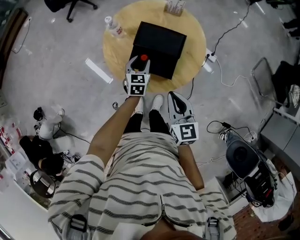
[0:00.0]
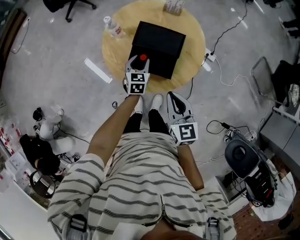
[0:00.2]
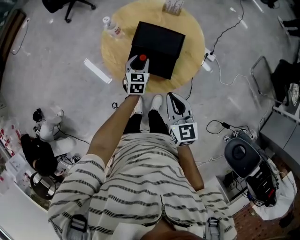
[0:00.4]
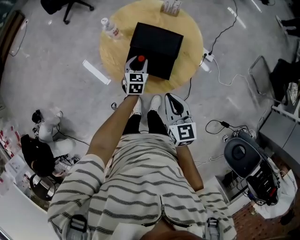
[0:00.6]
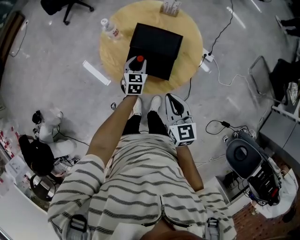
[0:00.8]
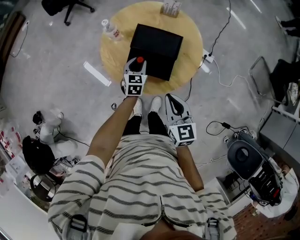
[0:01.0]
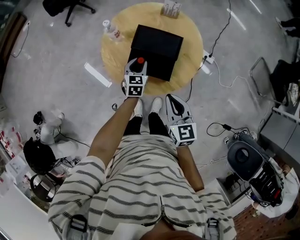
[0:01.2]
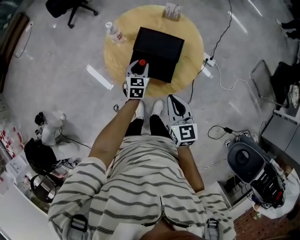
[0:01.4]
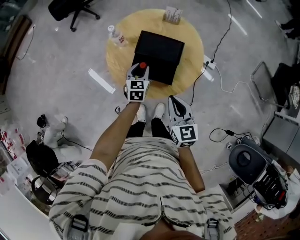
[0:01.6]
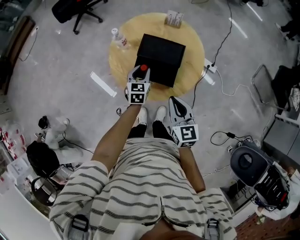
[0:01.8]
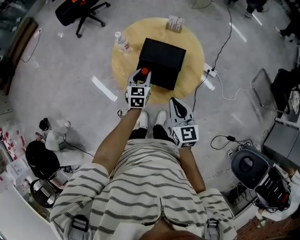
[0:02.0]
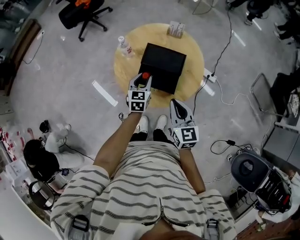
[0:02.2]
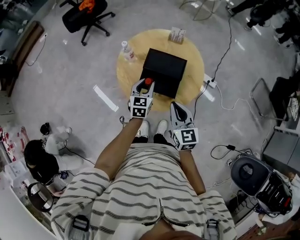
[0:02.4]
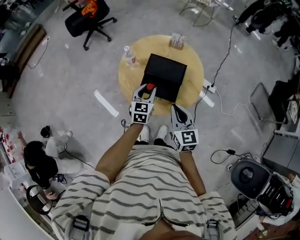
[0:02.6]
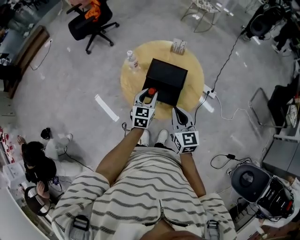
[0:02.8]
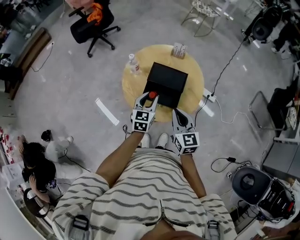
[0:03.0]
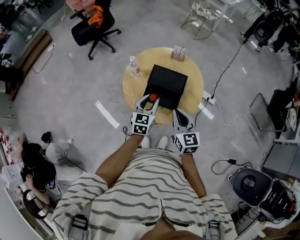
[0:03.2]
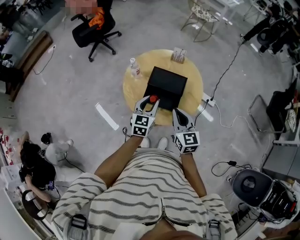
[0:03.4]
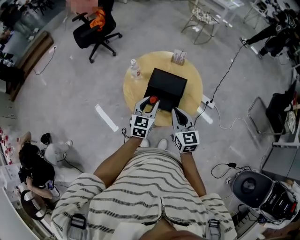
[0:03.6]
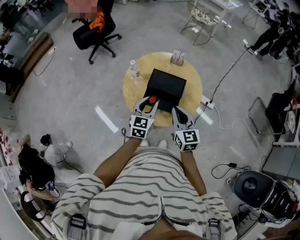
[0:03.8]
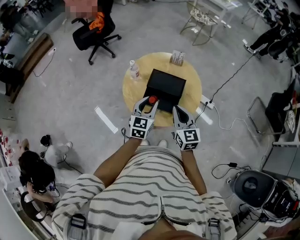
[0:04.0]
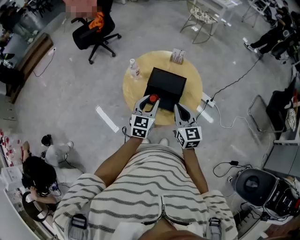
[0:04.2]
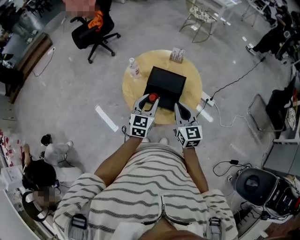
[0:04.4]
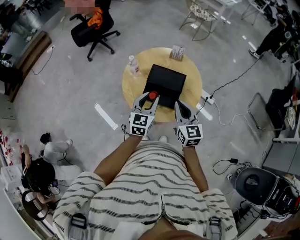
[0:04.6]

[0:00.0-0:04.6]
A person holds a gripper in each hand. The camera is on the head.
0:00.0 to 0:01.6: The grippers move only a little.
0:01.6 to 0:03.0: The left gripper shifts about 15 cm upward and backward. Meanwhile the right gripper moves about 5 cm.
0:03.0 to 0:04.6: The left gripper travels upward by about 5 cm.

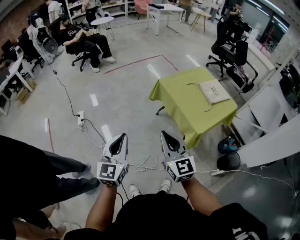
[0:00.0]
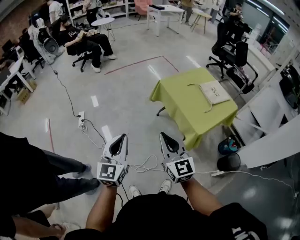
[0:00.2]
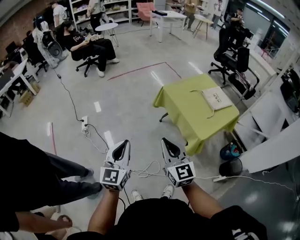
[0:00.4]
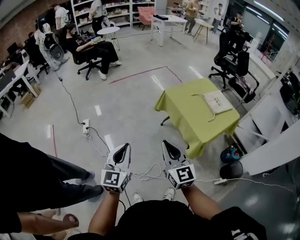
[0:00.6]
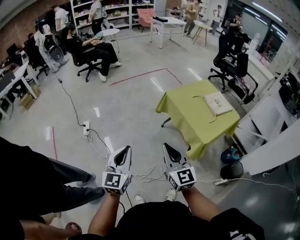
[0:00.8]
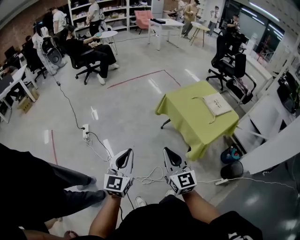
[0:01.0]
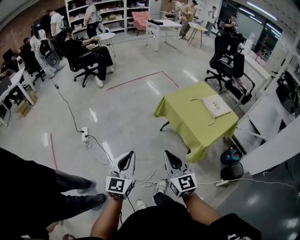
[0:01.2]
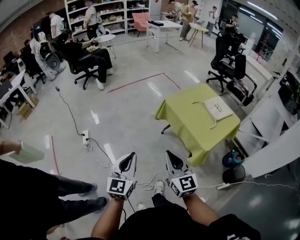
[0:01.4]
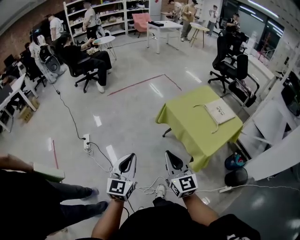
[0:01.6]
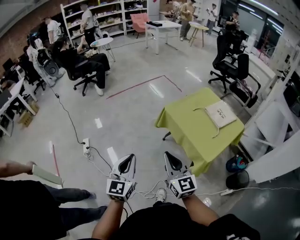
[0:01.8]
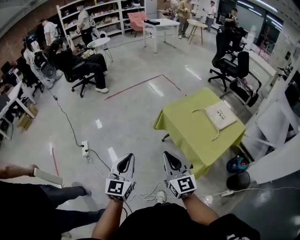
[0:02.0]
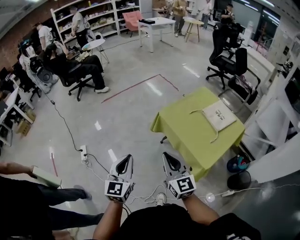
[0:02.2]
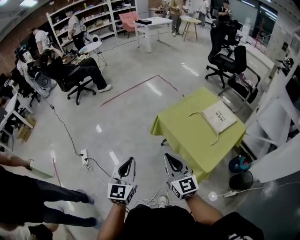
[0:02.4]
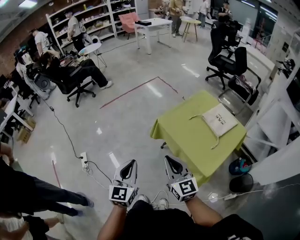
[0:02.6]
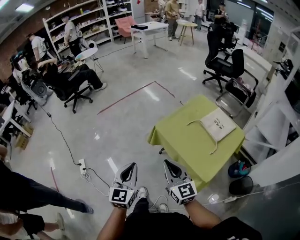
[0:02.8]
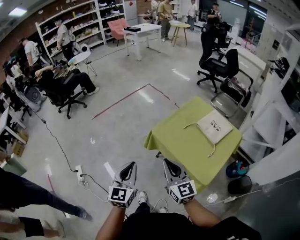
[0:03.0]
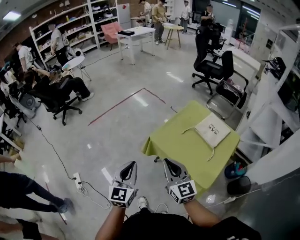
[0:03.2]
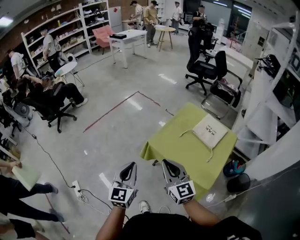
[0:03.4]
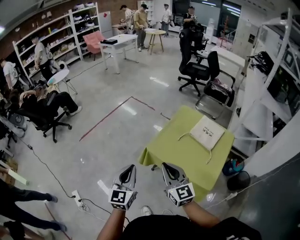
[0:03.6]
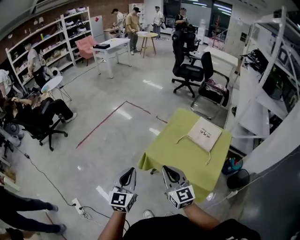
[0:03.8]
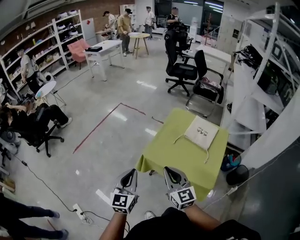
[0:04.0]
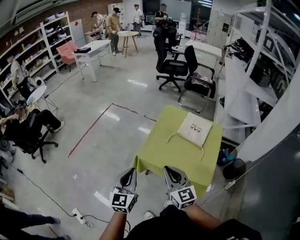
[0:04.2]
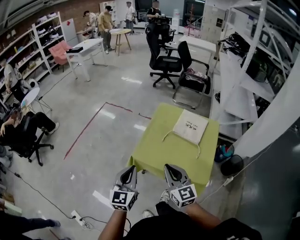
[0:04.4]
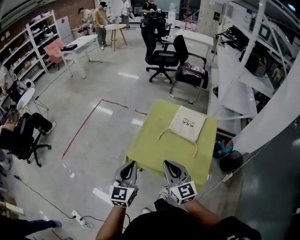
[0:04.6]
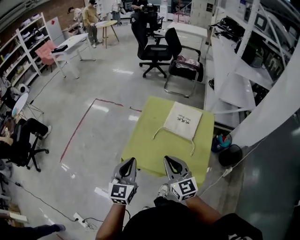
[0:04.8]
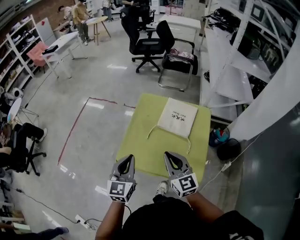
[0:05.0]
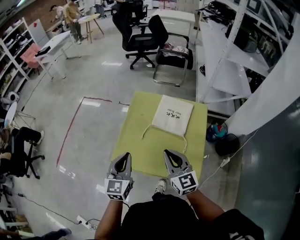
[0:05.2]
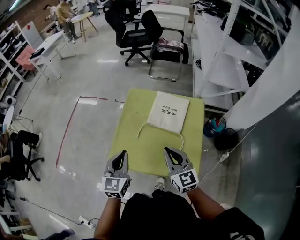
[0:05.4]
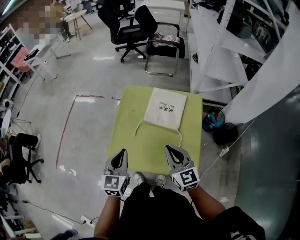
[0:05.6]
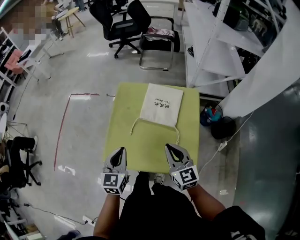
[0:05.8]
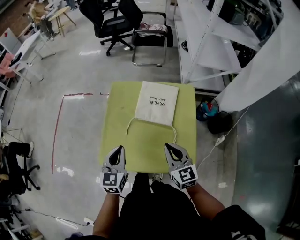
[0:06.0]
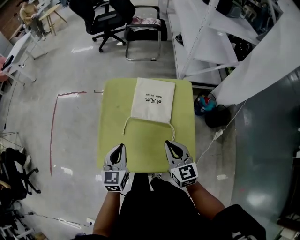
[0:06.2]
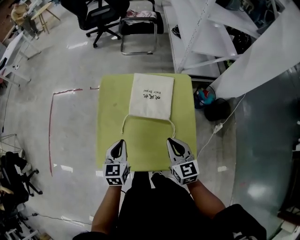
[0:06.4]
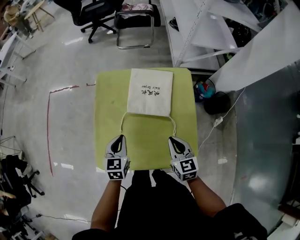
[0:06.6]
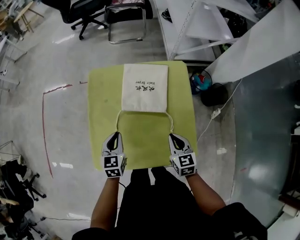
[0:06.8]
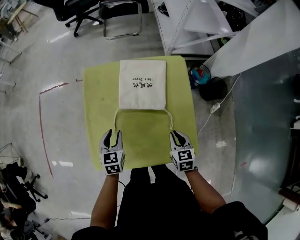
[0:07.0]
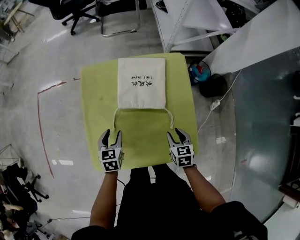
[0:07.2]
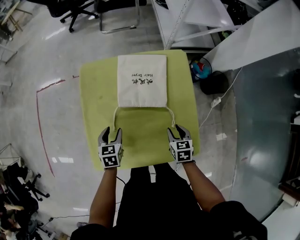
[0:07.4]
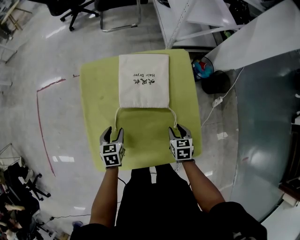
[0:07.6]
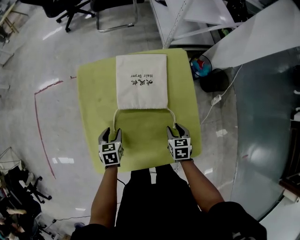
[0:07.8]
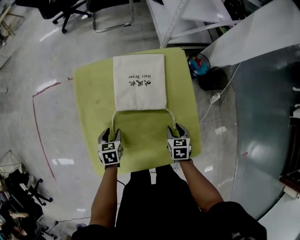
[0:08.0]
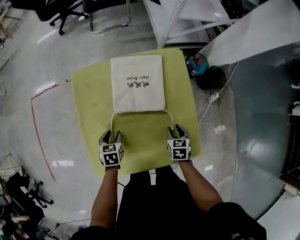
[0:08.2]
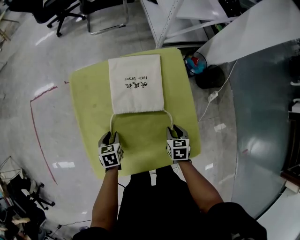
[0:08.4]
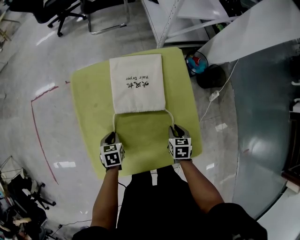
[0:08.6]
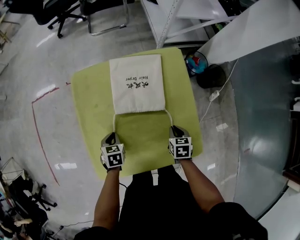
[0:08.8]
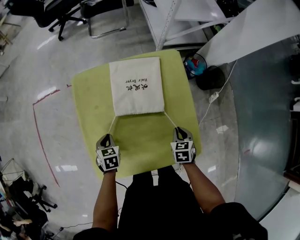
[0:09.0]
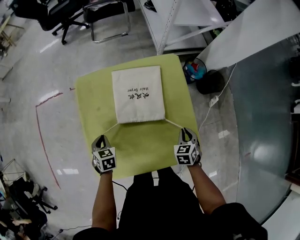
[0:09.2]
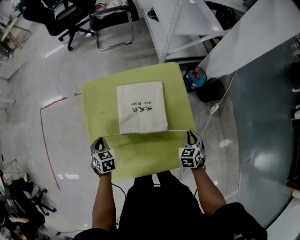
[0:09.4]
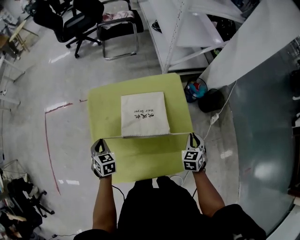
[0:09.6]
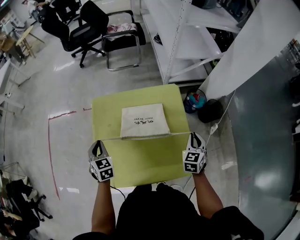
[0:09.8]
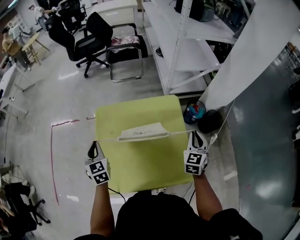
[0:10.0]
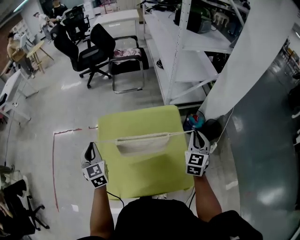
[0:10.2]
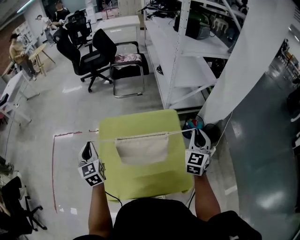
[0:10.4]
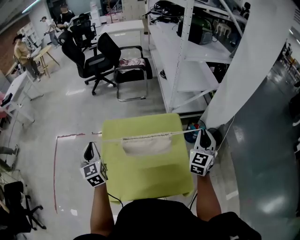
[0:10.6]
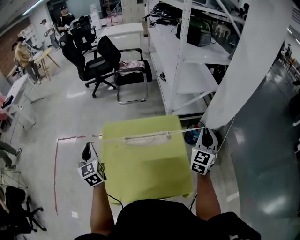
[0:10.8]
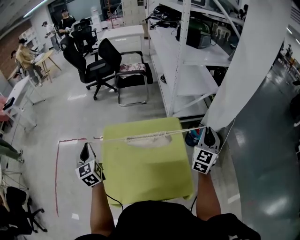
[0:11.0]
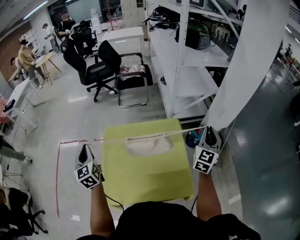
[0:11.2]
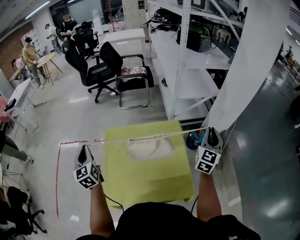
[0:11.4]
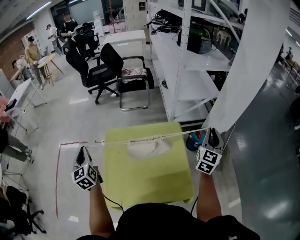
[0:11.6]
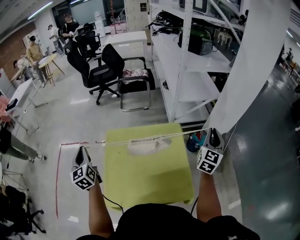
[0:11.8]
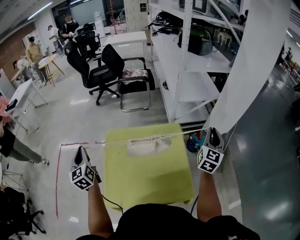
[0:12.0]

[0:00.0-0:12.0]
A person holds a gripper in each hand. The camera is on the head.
0:00.0 to 0:01.6: The two grippers go approximately 5 cm forward.
0:01.6 to 0:03.0: Both grippers move forward, roughly 25 cm.
0:03.0 to 0:04.4: The left gripper shifts by about 15 cm, and turns by some 30 degrees; the right gripper moves about 10 cm, and turns by some 30 degrees.
0:04.4 to 0:06.0: The right gripper goes roughly 25 cm to the right, forward and downward, and rotates some 20 degrees. Meanwhile the left gripper moves forward, to the right and downward, about 30 cm, and changes its angle by some 20 degrees.
0:06.0 to 0:07.6: The right gripper is displaced downward by roughly 25 cm, angles its fingers downward, by roughly 40 degrees, and opens up, while the left gripper heads downward and forward, covering approximately 25 cm, changes its angle by about 30 degrees, and opens its fingers.
0:07.6 to 0:09.0: The left gripper closes up; the right gripper closes up.
0:09.0 to 0:10.4: Both grippers move upward, roughly 30 cm. The left gripper points its fingers approximately 40 degrees further upward. The right gripper tips its fingers upward by about 50 degrees.
0:10.4 to 0:12.0: The right gripper heads upward and to the right, covering about 10 cm, and changes its angle by roughly 20 degrees; the left gripper goes about 10 cm to the left and upward.

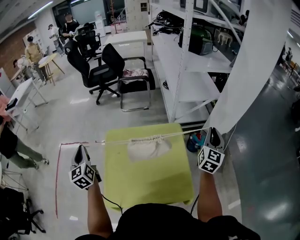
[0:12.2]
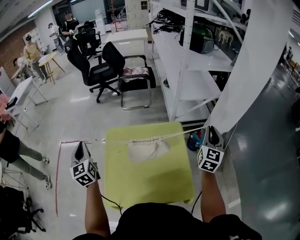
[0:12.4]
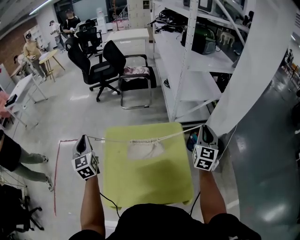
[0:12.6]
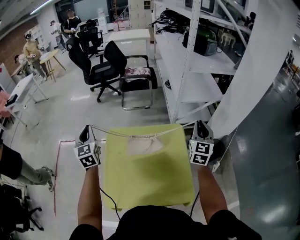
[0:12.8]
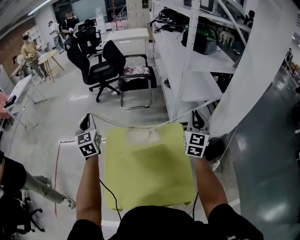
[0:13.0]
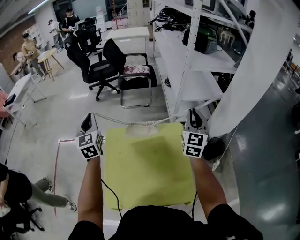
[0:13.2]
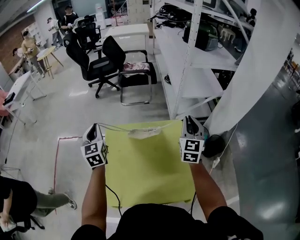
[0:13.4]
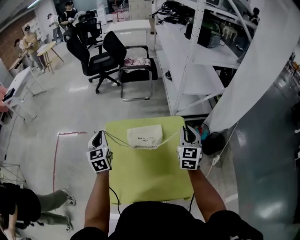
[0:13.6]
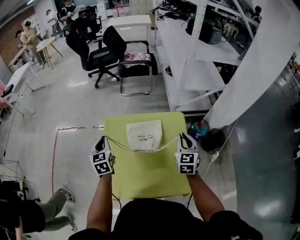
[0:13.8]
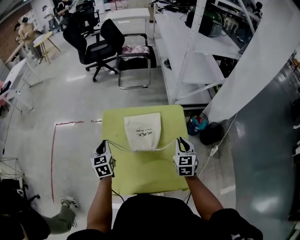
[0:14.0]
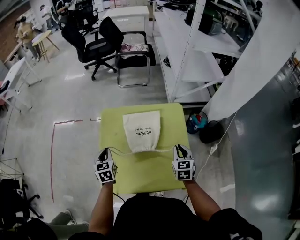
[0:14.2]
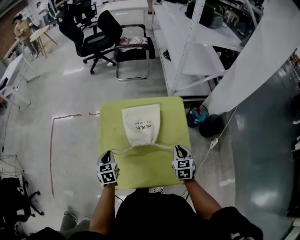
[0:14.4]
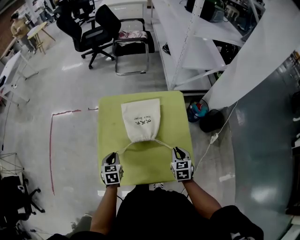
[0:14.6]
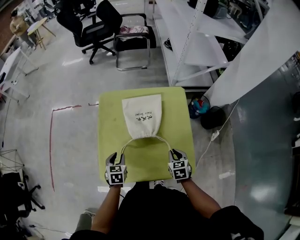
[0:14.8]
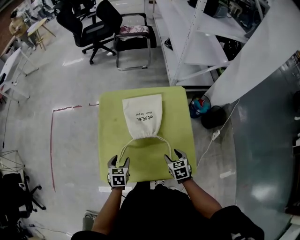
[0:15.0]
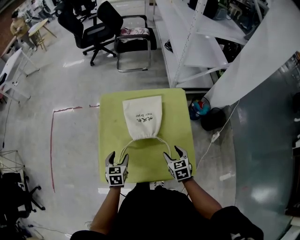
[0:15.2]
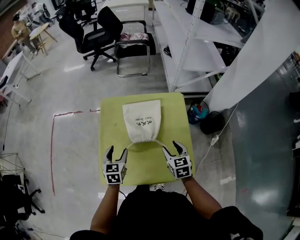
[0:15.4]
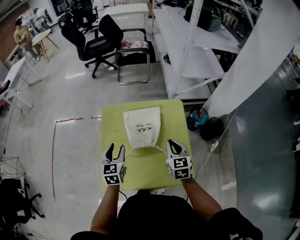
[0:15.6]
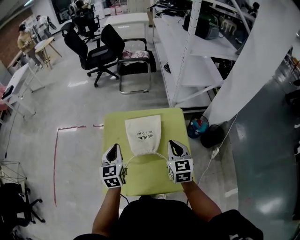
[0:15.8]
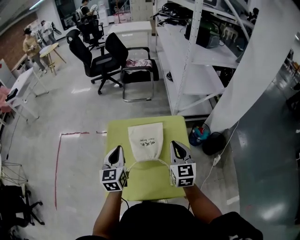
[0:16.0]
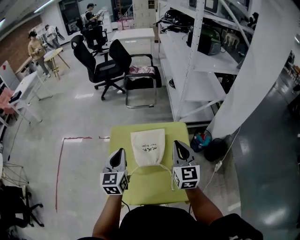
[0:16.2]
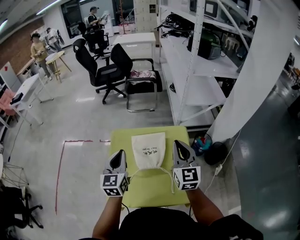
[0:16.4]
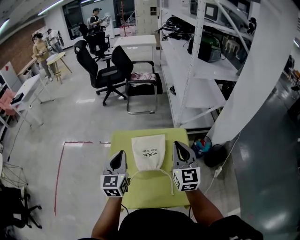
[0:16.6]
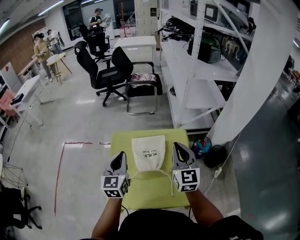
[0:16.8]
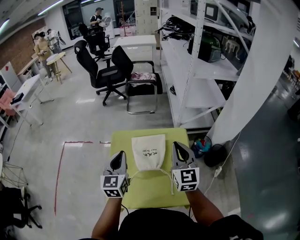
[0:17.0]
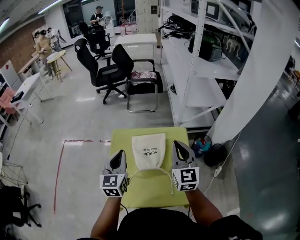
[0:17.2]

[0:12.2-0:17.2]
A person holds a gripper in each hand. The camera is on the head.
0:12.2 to 0:13.8: The left gripper heads downward and to the right, covering roughly 15 cm, and turns by about 20 degrees. The right gripper heads to the left and downward, covering roughly 20 cm, and swivels roughly 30 degrees.
0:13.8 to 0:15.6: The right gripper travels backward and to the left by about 10 cm, moves approximately 20 cm downward and comes back, and opens, then closes once more; the left gripper is displaced backward and to the right by some 10 cm, moves approximately 20 cm downward and comes back, and opens.
0:15.6 to 0:17.2: The grippers both shift upward by some 15 cm. The left gripper closes up, while the right gripper swivels roughly 30 degrees.

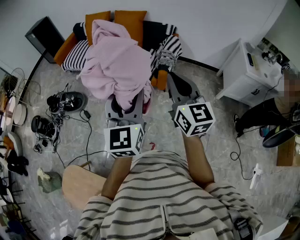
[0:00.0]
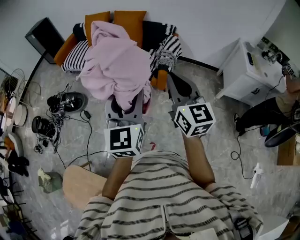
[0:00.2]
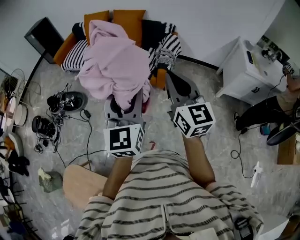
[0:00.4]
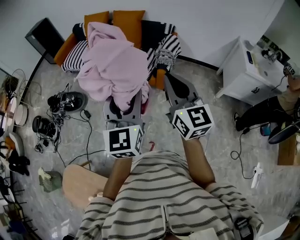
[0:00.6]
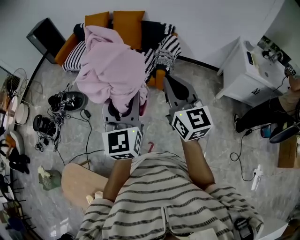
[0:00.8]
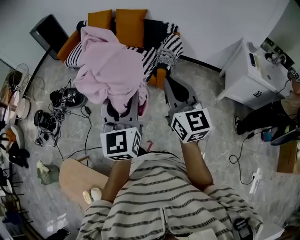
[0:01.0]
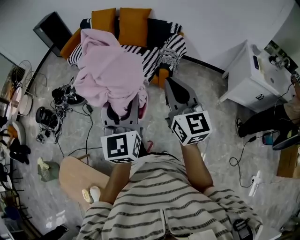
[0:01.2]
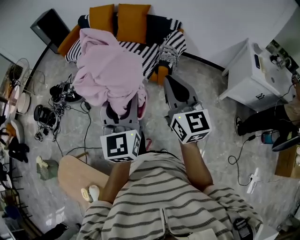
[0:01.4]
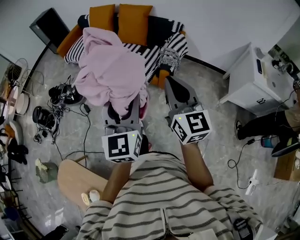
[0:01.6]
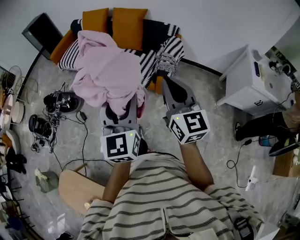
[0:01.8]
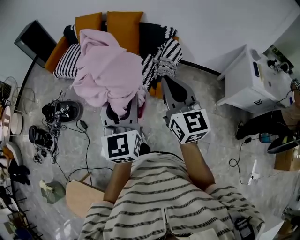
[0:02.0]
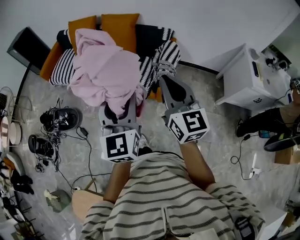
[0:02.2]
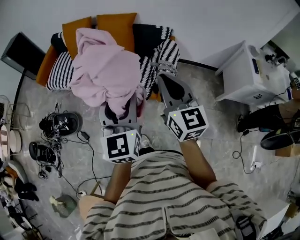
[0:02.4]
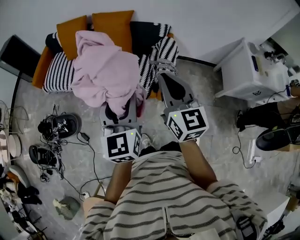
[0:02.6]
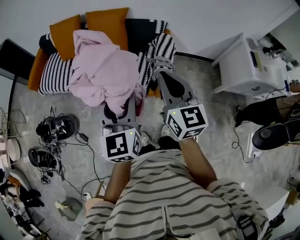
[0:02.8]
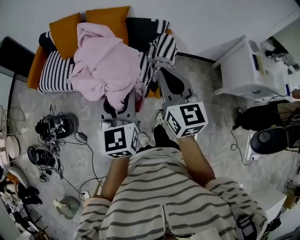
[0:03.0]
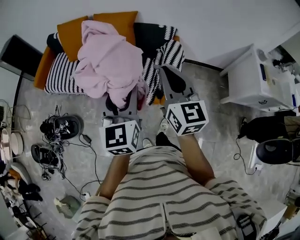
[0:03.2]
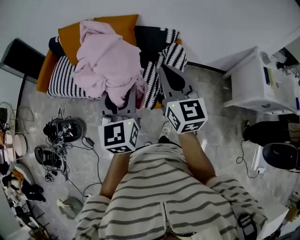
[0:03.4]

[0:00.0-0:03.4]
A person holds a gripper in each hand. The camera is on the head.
0:00.0 to 0:01.6: The left gripper ends up about 5 cm from where it was, while the right gripper shifts by roughly 5 cm.
0:01.6 to 0:03.4: The two grippers travel together, forward, roughly 40 cm.
